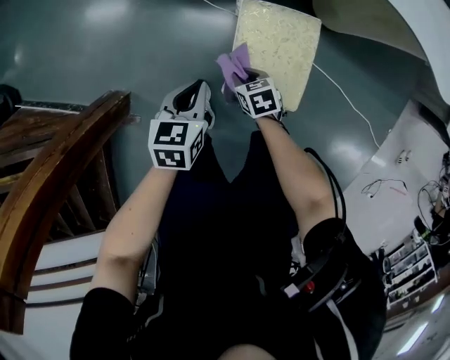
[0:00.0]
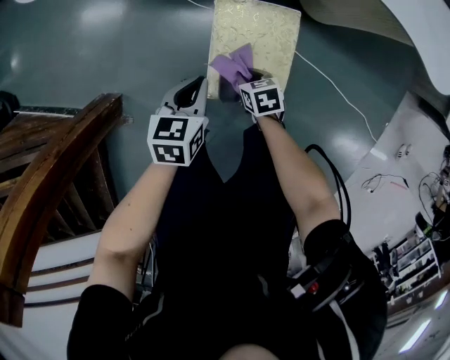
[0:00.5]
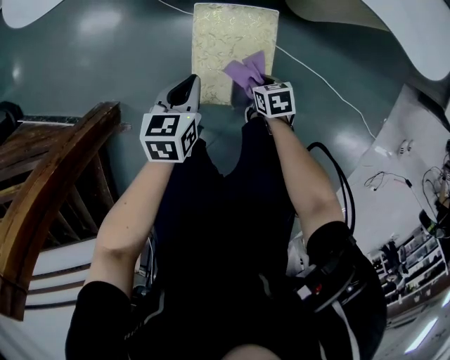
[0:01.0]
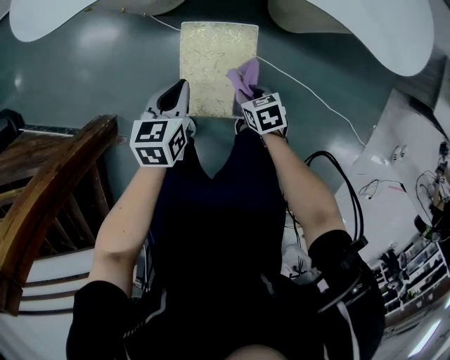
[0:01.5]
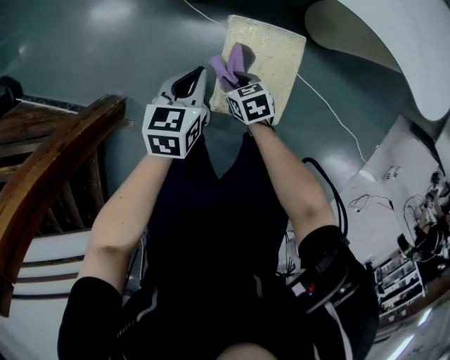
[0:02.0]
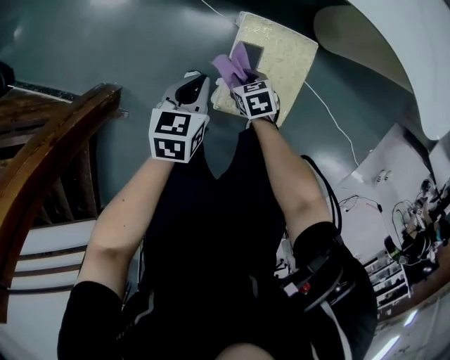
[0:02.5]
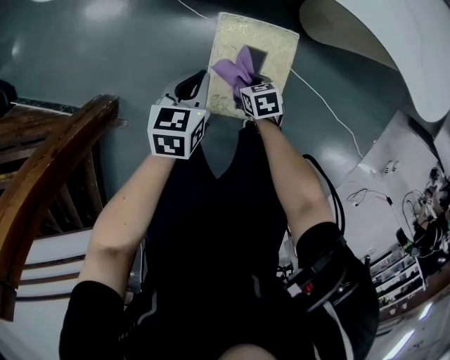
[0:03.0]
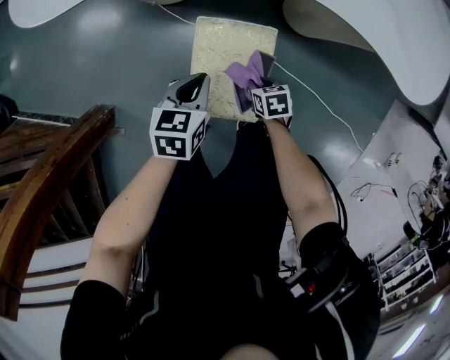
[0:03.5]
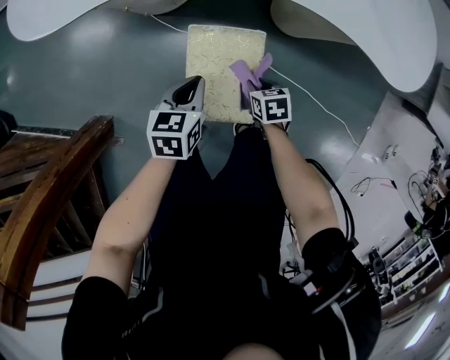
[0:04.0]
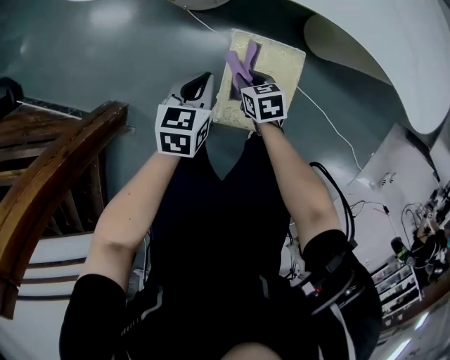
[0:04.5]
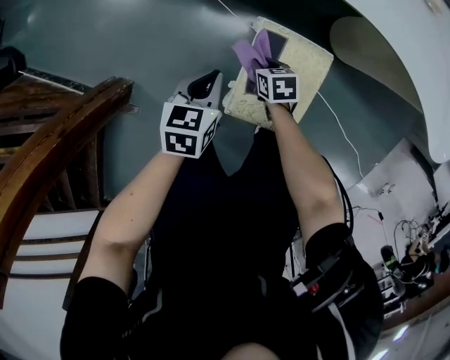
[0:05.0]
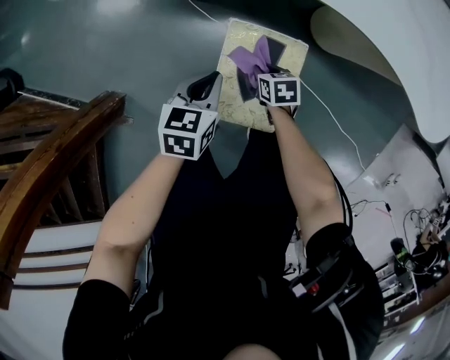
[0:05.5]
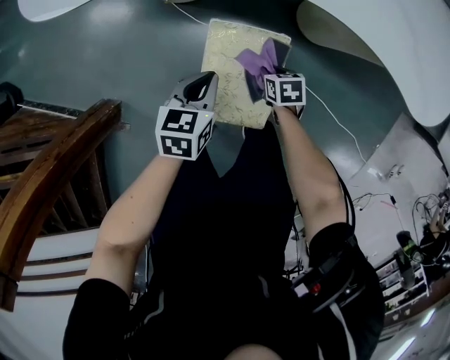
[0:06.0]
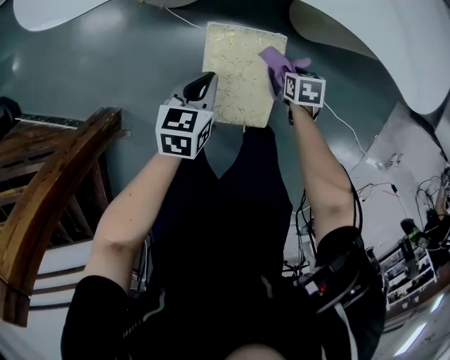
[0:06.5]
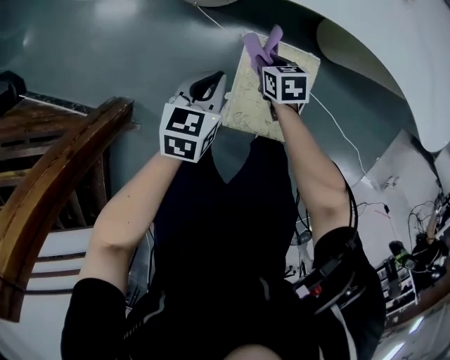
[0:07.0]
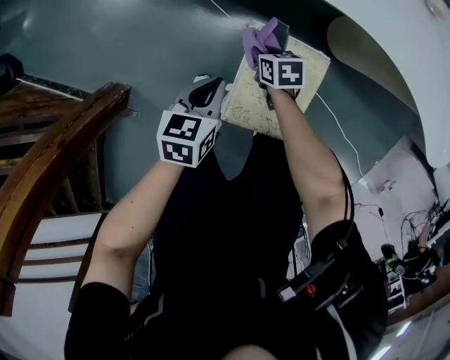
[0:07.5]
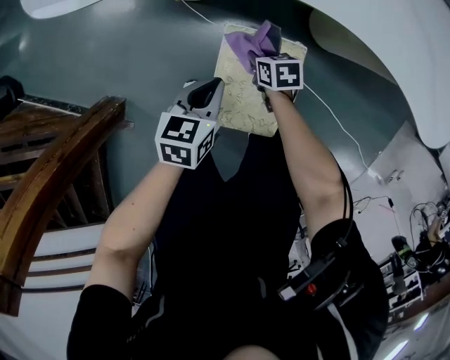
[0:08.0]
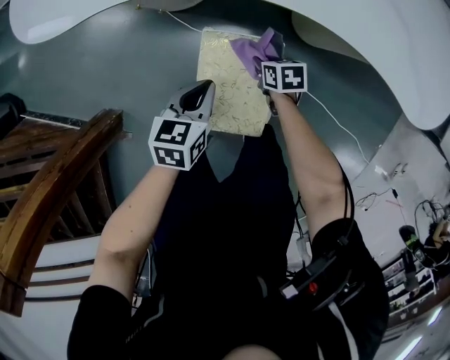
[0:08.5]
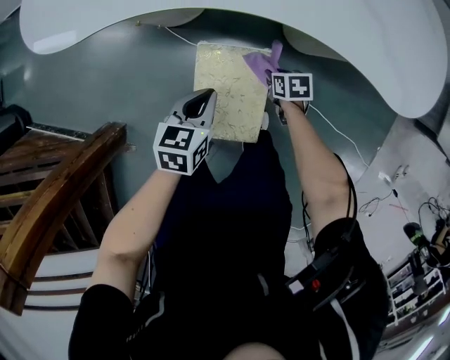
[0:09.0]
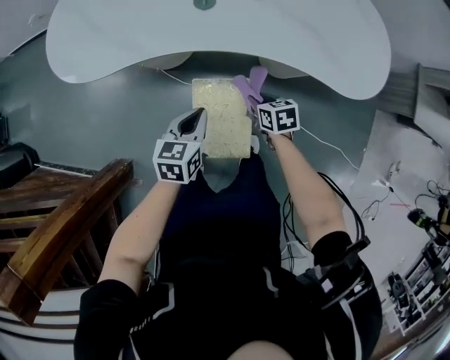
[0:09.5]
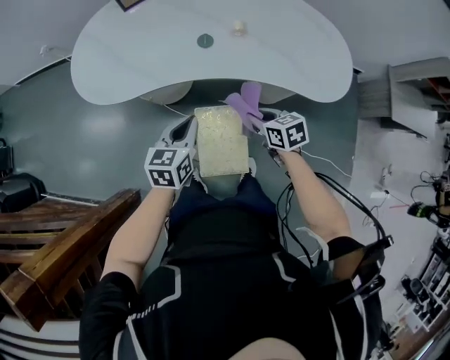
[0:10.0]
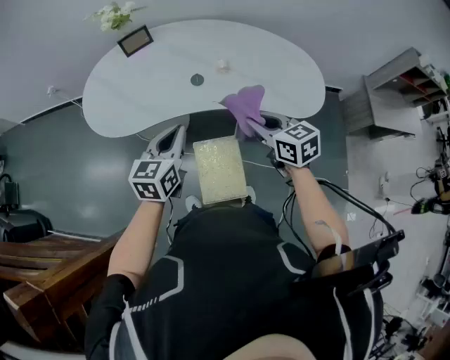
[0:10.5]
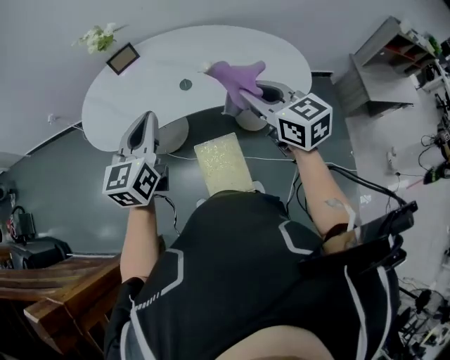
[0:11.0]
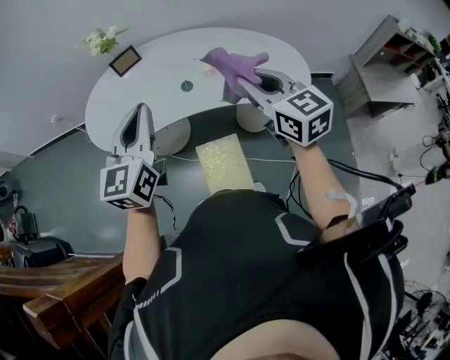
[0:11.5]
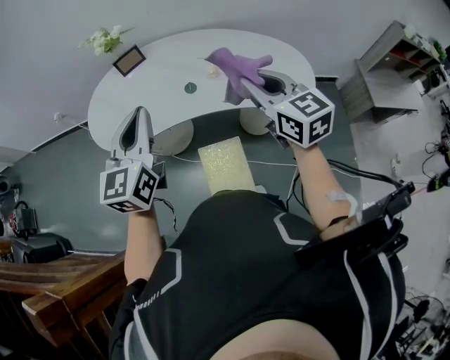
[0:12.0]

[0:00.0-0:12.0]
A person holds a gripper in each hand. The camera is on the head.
0.0 to 2.0 s: The left gripper is displaced forward and to the right by roughly 10 cm, while the right gripper moves upward, some 5 cm, and travels to the right and back again, approximately 20 cm each way.
2.0 to 4.0 s: The left gripper travels to the right by roughly 10 cm, while the right gripper heads to the right, covering some 20 cm.
4.0 to 6.0 s: The right gripper reaches some 15 cm to the left, then returns, while the left gripper goes to the left and returns, about 10 cm each way.
6.0 to 8.0 s: The left gripper reaches about 10 cm to the left, then returns; the right gripper goes left and right, approximately 20 cm each way, reversing 2 times.
8.0 to 10.0 s: The grippers both shift upward by approximately 30 cm. The left gripper rotates about 20 degrees.
10.0 to 12.0 s: The two grippers go approximately 35 cm upward. The left gripper swivels roughly 30 degrees. The right gripper points its fingers roughly 30 degrees further upward.

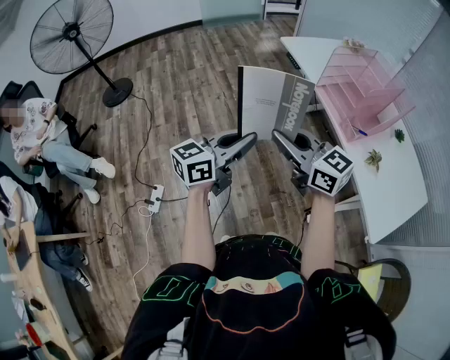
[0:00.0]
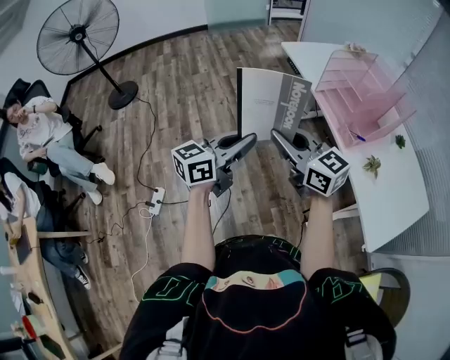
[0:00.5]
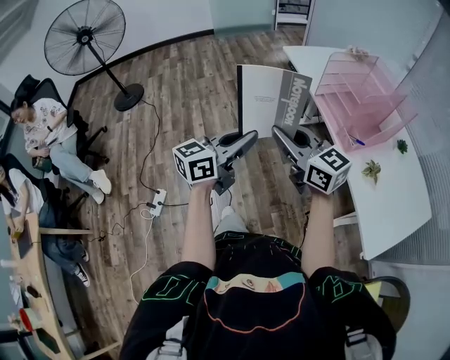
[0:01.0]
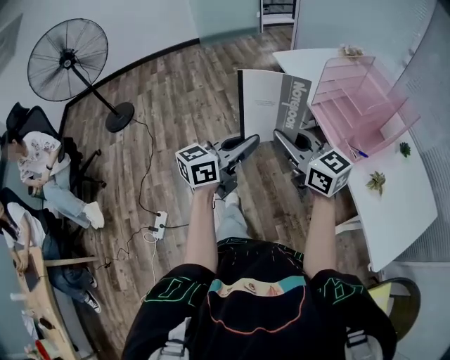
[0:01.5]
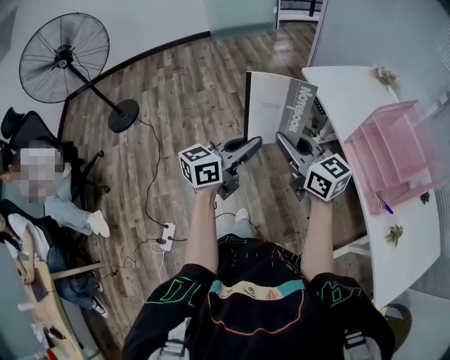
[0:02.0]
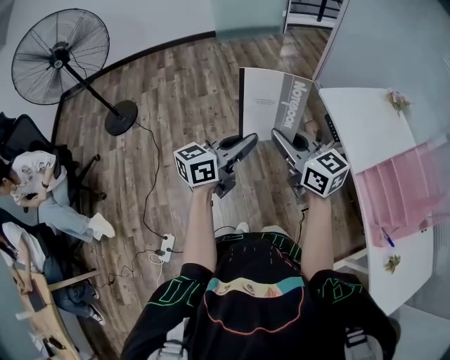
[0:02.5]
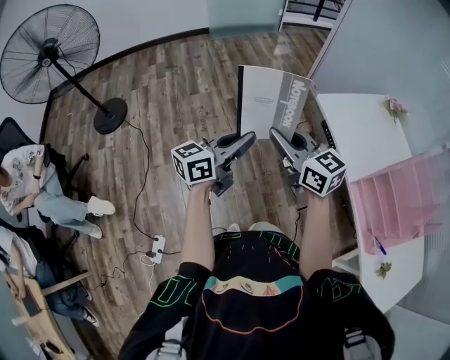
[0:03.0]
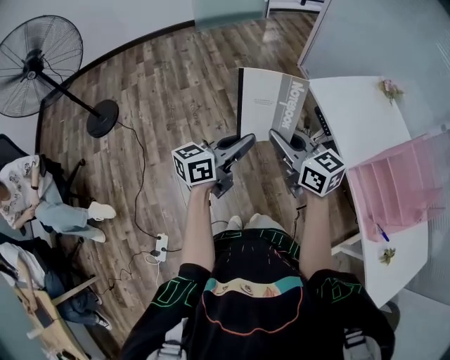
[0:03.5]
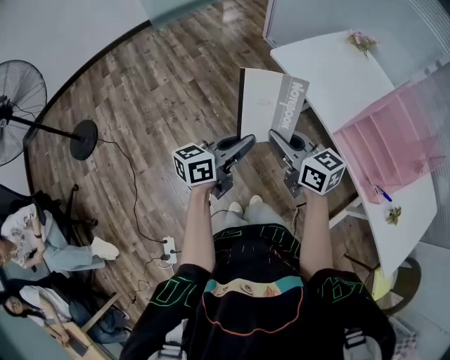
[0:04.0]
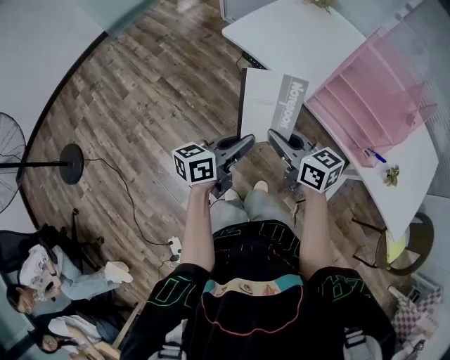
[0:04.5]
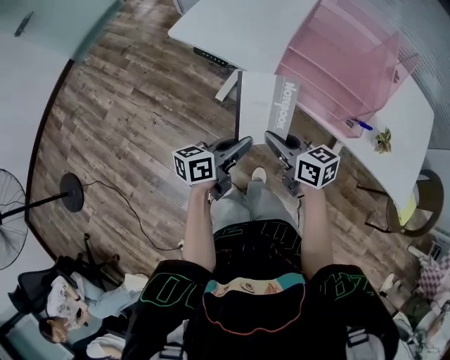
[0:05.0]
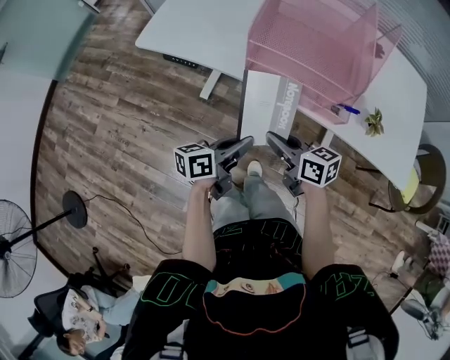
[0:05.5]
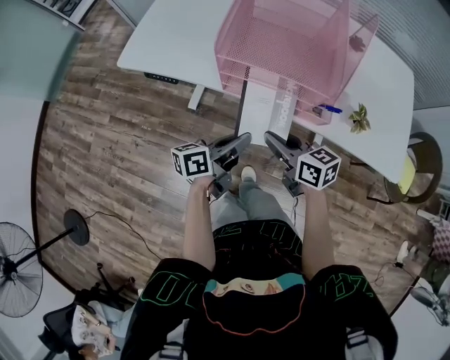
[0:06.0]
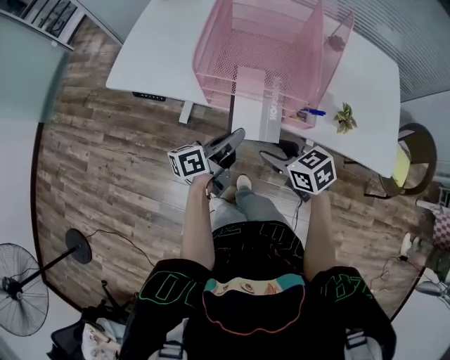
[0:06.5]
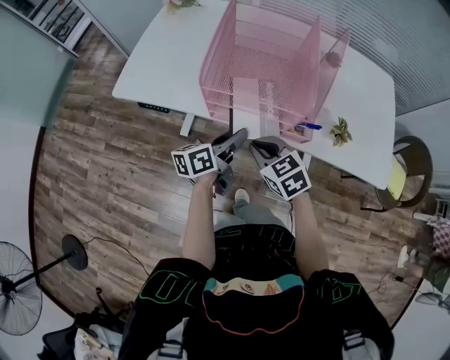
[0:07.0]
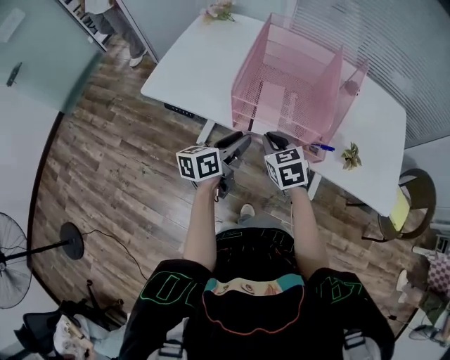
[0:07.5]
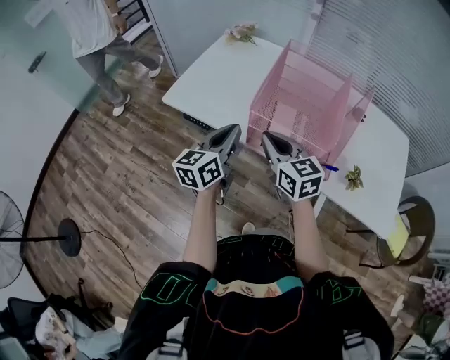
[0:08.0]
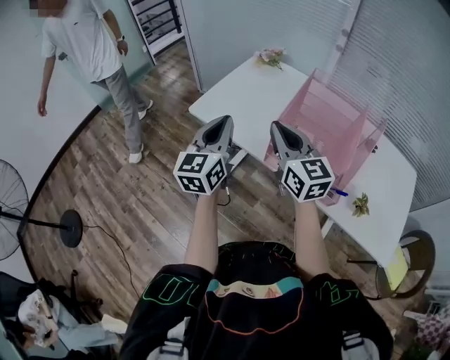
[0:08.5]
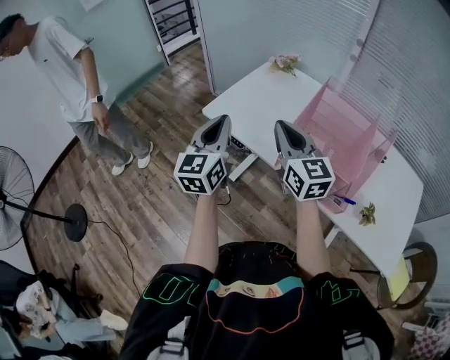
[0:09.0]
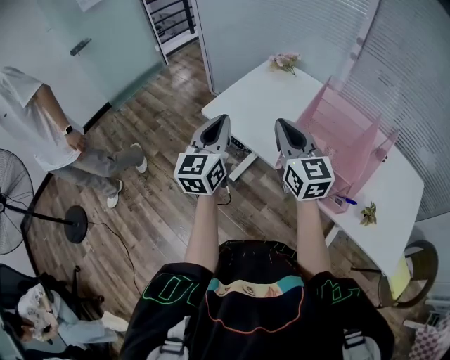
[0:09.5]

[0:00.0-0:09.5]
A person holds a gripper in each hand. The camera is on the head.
0.0 to 2.0 s: Both grippers move forward, approximately 30 cm.
2.0 to 4.0 s: The grippers both shift forward and downward by some 15 cm.
4.0 to 5.5 s: The right gripper ends up about 30 cm from where it was, and turns by about 40 degrees; the left gripper moves about 30 cm, and rotates some 40 degrees.
5.5 to 7.5 s: The left gripper moves forward and upward, roughly 15 cm, and opens its fingers. The right gripper goes some 10 cm forward, changes its angle by roughly 40 degrees, and opens, then closes once more.
7.5 to 9.5 s: The right gripper travels upward by approximately 20 cm, and tilts its fingers about 40 degrees upward; the left gripper moves approximately 30 cm, changes its angle by approximately 60 degrees, and closes.

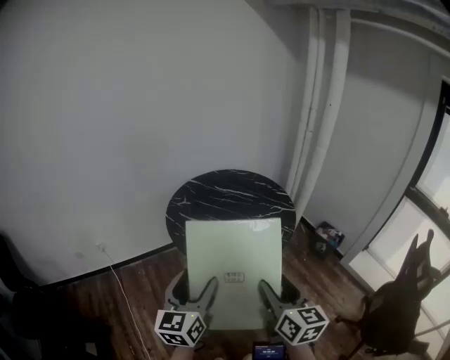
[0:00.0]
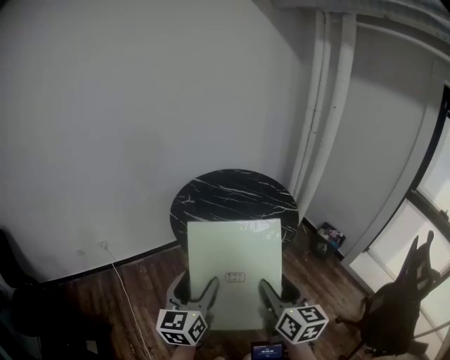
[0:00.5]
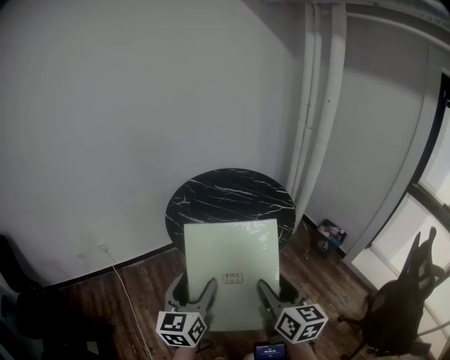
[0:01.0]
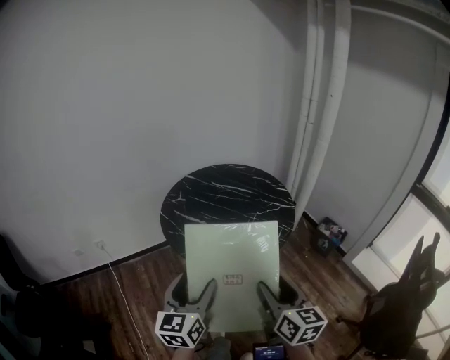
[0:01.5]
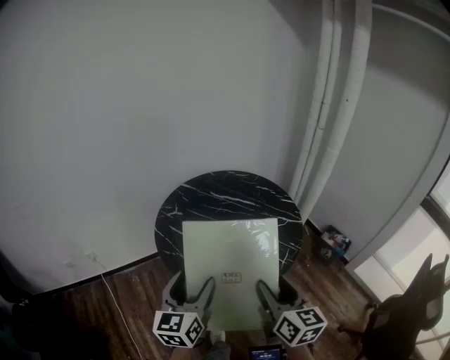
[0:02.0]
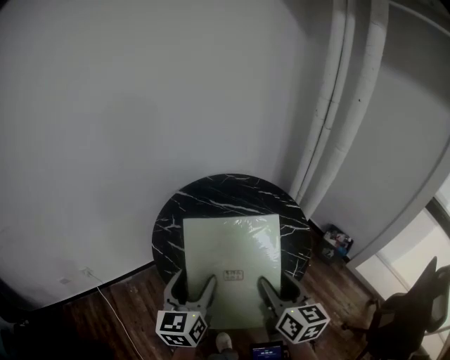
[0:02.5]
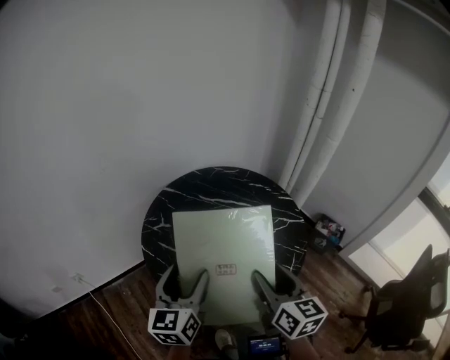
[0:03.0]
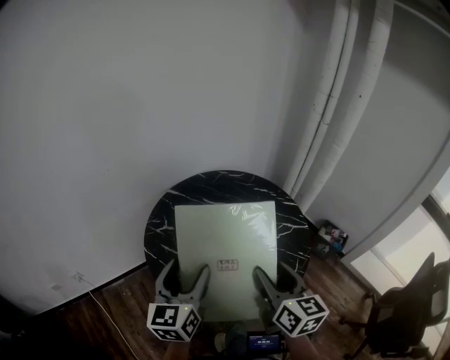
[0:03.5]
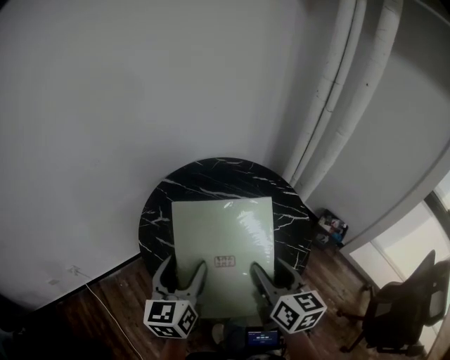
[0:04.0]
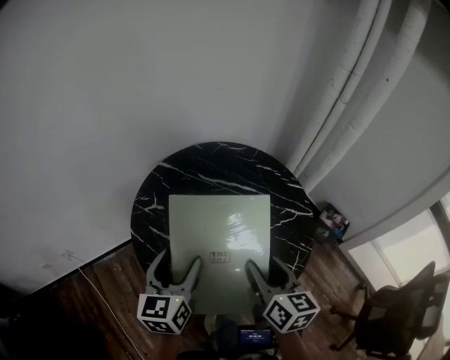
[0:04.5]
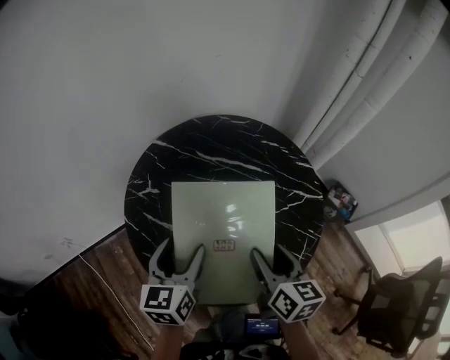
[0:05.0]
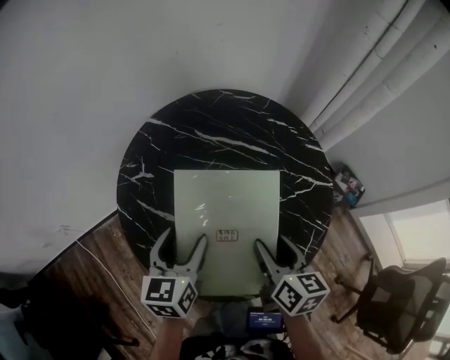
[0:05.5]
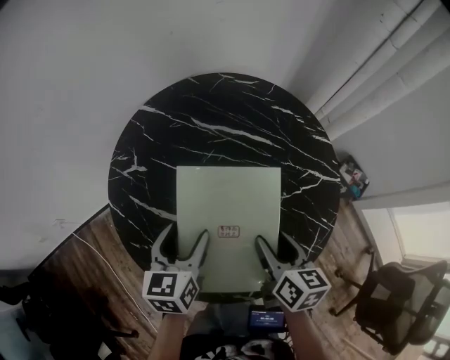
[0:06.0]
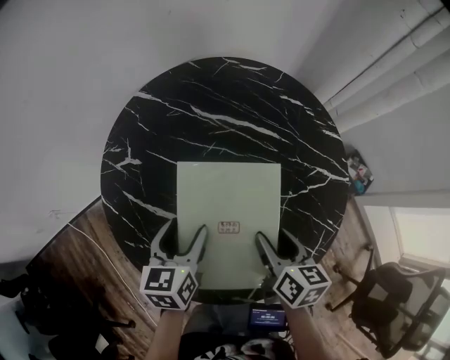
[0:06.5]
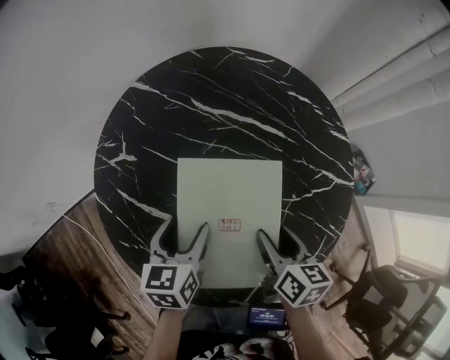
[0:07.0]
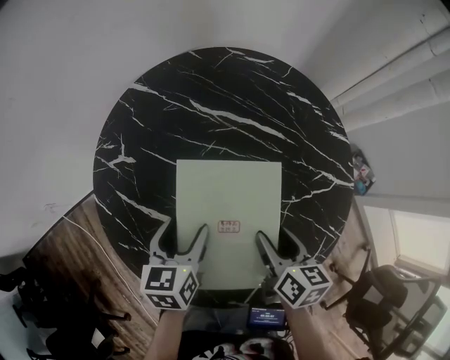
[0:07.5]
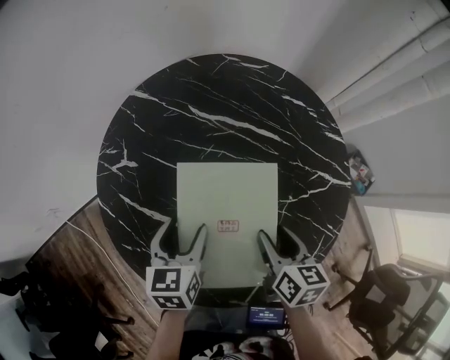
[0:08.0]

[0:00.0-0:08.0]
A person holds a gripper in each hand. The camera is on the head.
0.0 to 2.0 s: Both grippers travel together forward, approximately 15 cm.
2.0 to 4.0 s: Both grippers travel together forward, some 20 cm.
4.0 to 6.0 s: The grippers both shift downward and forward by roughly 20 cm. The left gripper turns by some 20 degrees. The right gripper turns by roughly 20 degrees.
6.0 to 8.0 s: Both grippers travel together downward, some 5 cm.
